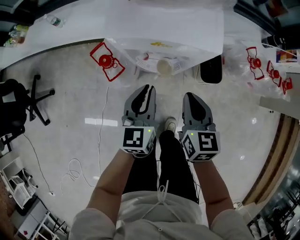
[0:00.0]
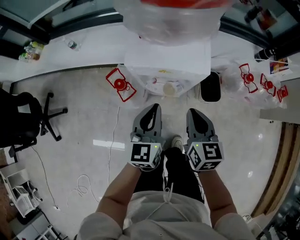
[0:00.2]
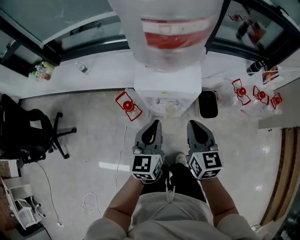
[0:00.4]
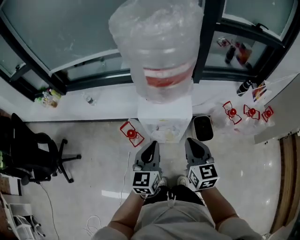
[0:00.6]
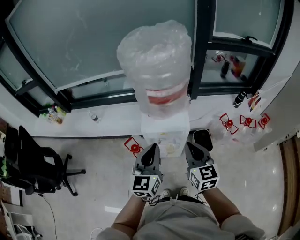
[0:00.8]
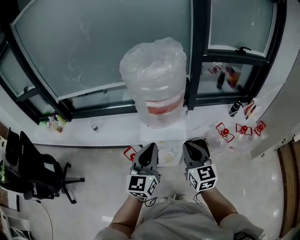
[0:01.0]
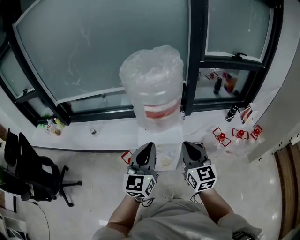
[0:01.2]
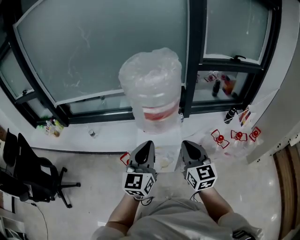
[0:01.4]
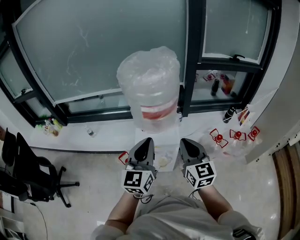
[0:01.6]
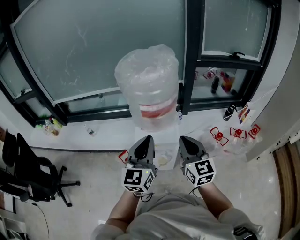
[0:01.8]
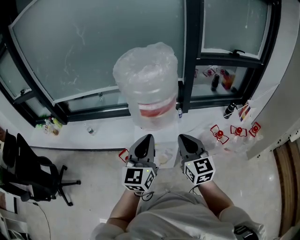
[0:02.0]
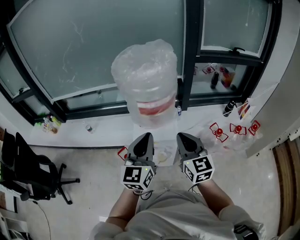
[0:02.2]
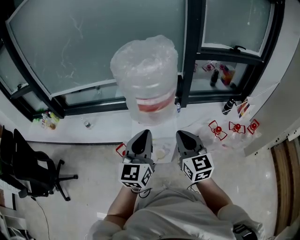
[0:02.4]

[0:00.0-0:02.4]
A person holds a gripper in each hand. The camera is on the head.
0:00.0 to 0:01.2: Both grippers travel together upward, some 40 cm. The right gripper changes its angle by approximately 30 degrees, while the left gripper changes its angle by roughly 30 degrees.
0:01.2 to 0:02.4: There are only small adjustments of the grippers.

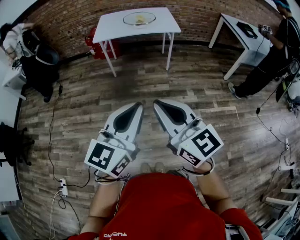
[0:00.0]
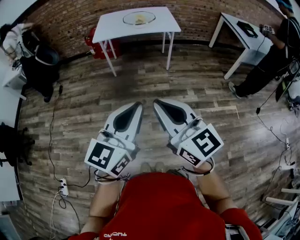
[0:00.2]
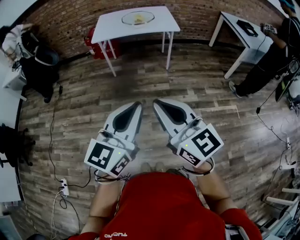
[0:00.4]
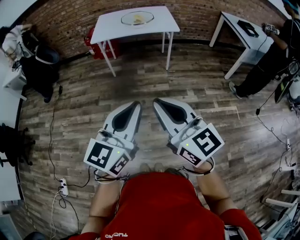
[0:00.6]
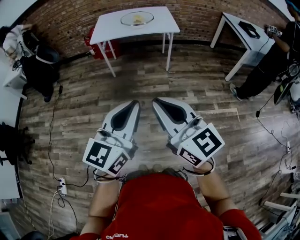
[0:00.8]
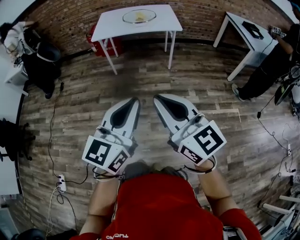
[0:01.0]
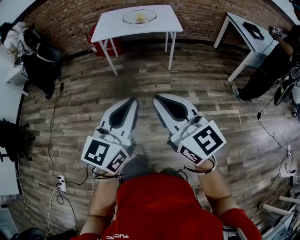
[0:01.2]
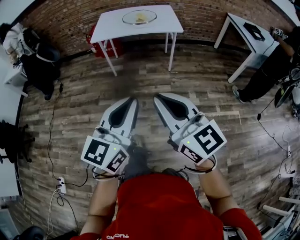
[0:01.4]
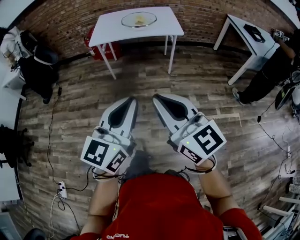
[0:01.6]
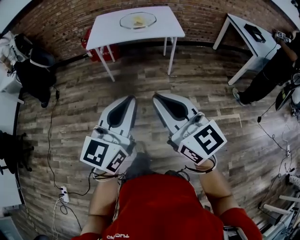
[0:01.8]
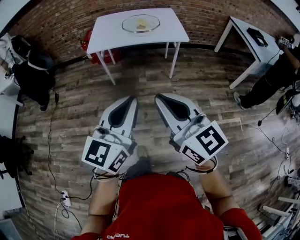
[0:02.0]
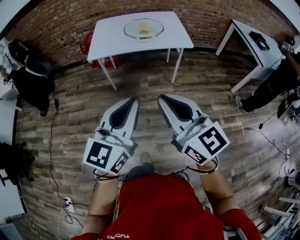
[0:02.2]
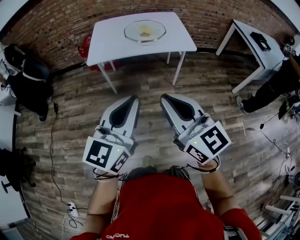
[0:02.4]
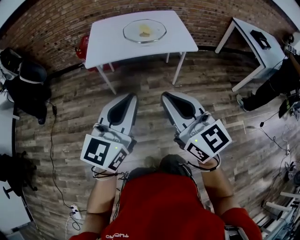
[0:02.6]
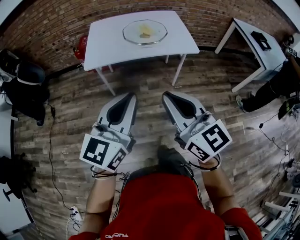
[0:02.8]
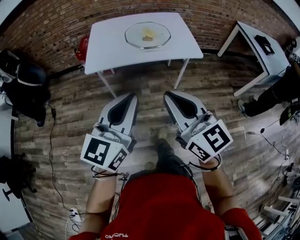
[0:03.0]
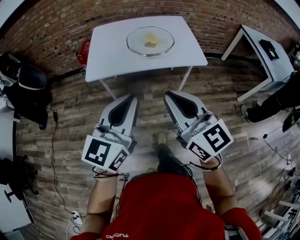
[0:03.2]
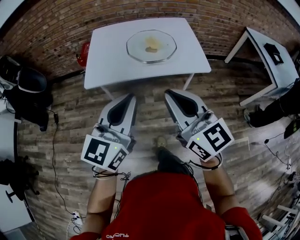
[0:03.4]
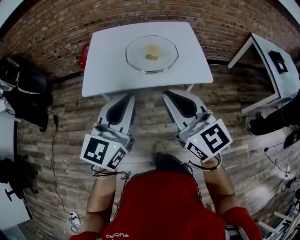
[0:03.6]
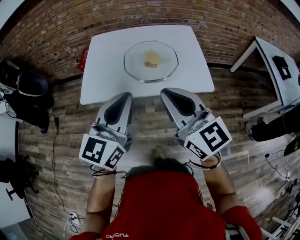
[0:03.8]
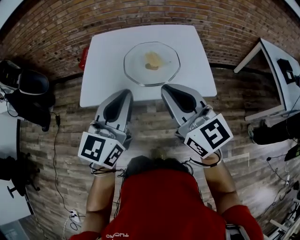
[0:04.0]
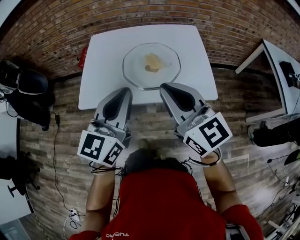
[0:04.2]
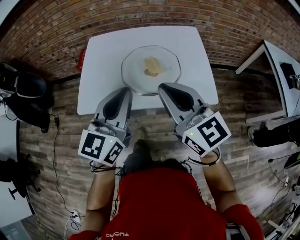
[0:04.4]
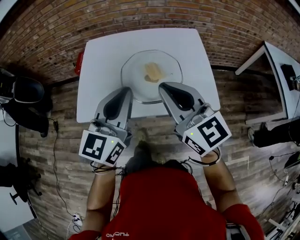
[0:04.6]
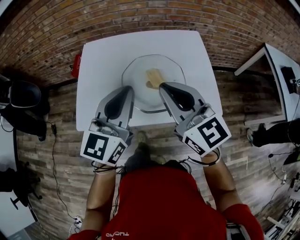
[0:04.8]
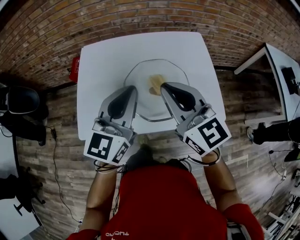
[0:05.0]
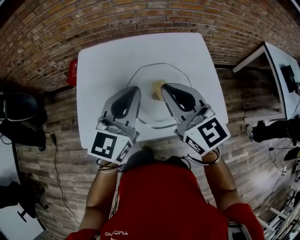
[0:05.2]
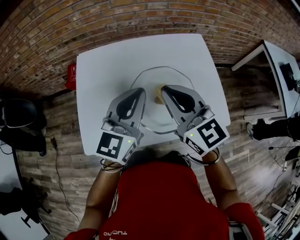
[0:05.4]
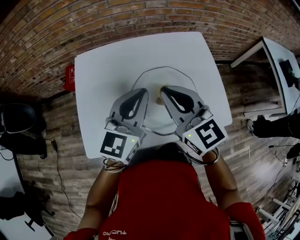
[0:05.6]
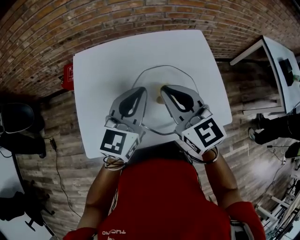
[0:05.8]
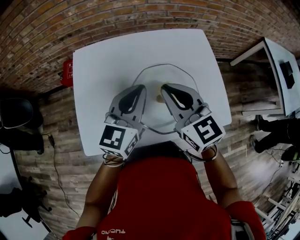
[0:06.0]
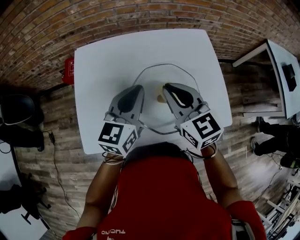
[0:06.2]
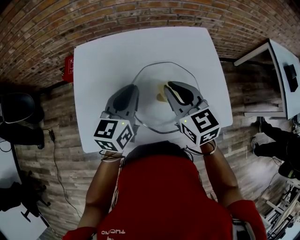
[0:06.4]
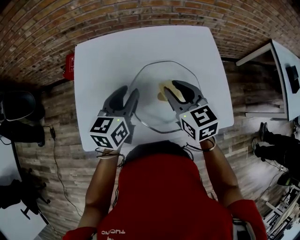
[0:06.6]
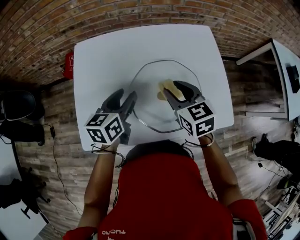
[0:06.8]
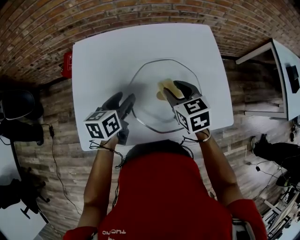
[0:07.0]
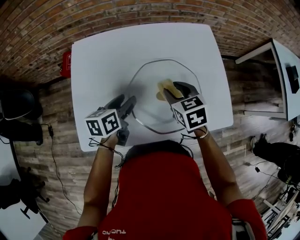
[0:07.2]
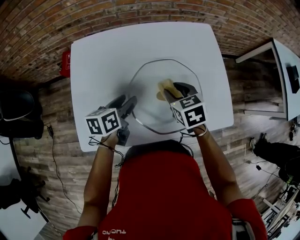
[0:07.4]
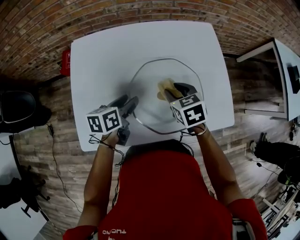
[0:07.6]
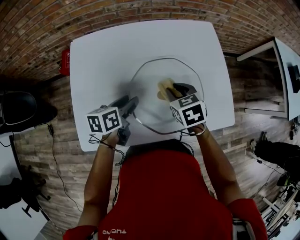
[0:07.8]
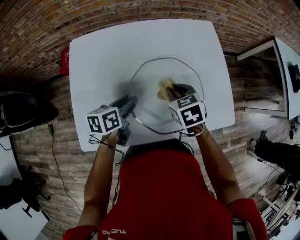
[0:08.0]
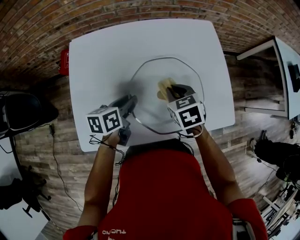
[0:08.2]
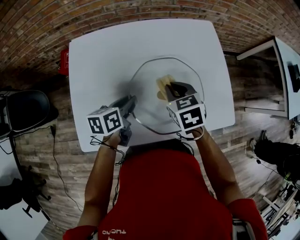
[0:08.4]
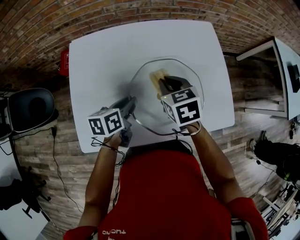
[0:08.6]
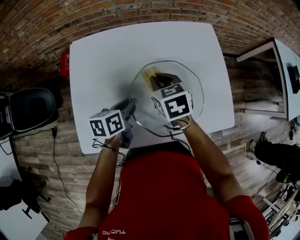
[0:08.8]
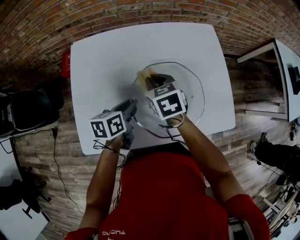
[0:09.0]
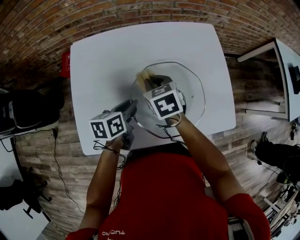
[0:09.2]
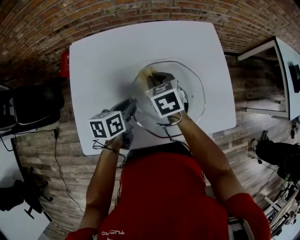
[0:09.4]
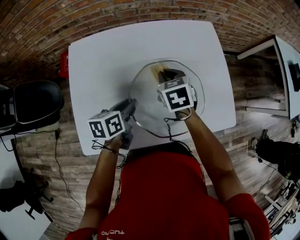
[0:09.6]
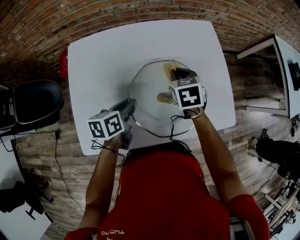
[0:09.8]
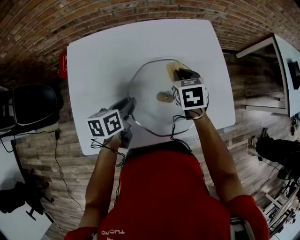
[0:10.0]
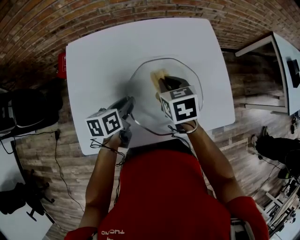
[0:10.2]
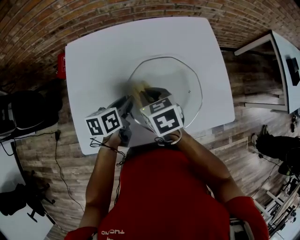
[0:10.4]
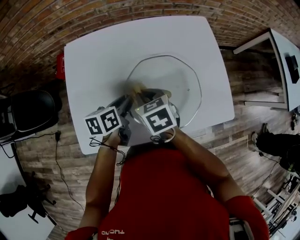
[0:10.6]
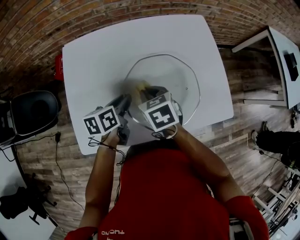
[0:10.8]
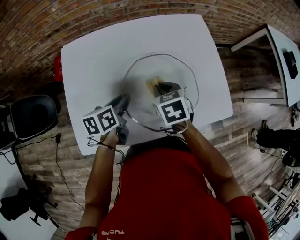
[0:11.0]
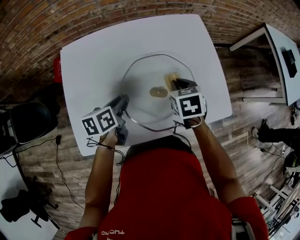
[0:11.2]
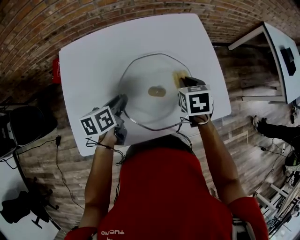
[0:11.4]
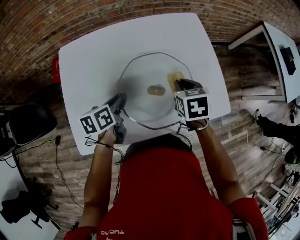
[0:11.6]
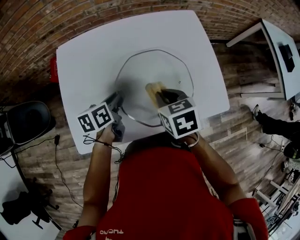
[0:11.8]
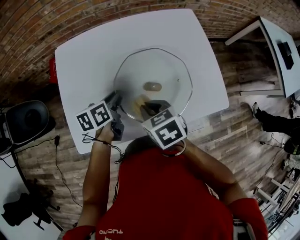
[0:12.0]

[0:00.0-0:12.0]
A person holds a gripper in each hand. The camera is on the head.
0:00.0 to 0:01.6: Both grippers move forward, about 10 cm.
0:01.6 to 0:03.0: The two grippers go some 35 cm forward.
0:03.0 to 0:04.4: The two grippers go some 35 cm forward.
0:04.4 to 0:06.0: The two grippers go roughly 25 cm forward.
0:06.0 to 0:07.6: Both grippers move downward, about 20 cm. The left gripper changes its angle by some 50 degrees, and opens its fingers. Meanwhile the right gripper tilts its fingers about 40 degrees downward, and opens its fingers.
0:07.6 to 0:09.0: The left gripper closes. Meanwhile the right gripper is displaced to the left by approximately 10 cm, and closes.
0:09.0 to 0:10.4: The right gripper goes about 5 cm backward, and moves roughly 10 cm to the right and comes back.
0:10.4 to 0:12.0: The right gripper heads backward, covering approximately 10 cm, and reaches approximately 20 cm to the right, then returns.

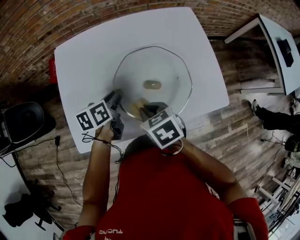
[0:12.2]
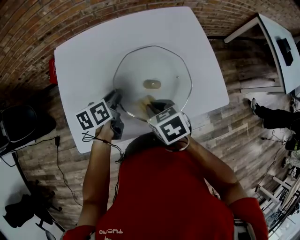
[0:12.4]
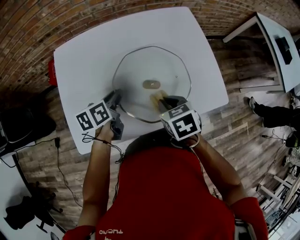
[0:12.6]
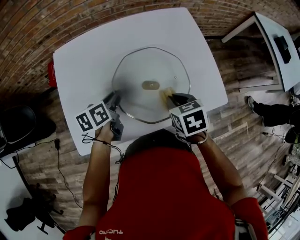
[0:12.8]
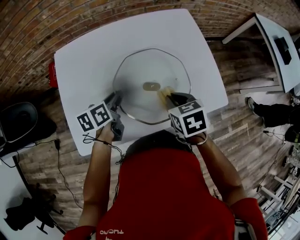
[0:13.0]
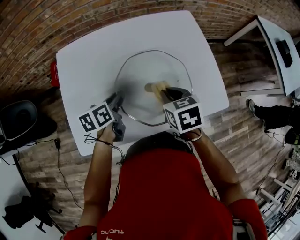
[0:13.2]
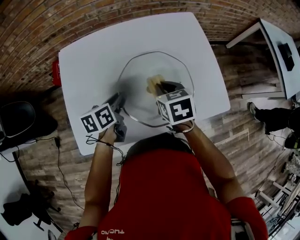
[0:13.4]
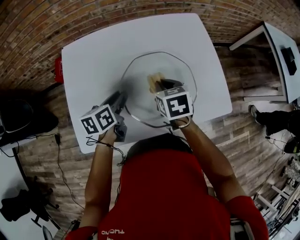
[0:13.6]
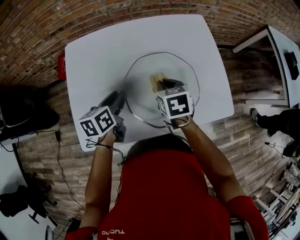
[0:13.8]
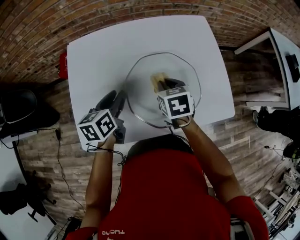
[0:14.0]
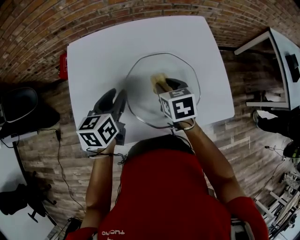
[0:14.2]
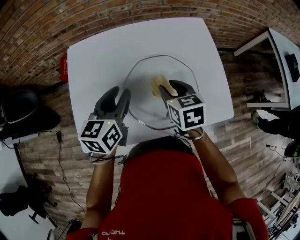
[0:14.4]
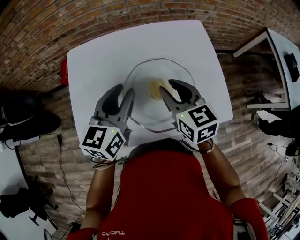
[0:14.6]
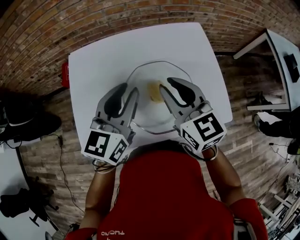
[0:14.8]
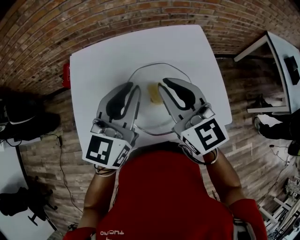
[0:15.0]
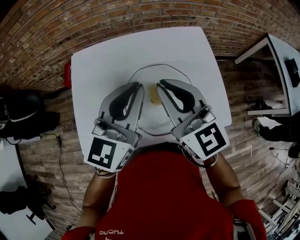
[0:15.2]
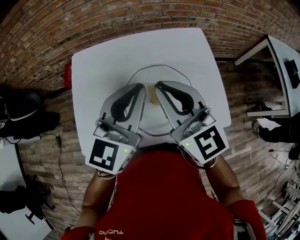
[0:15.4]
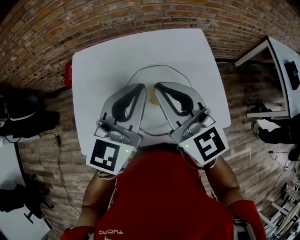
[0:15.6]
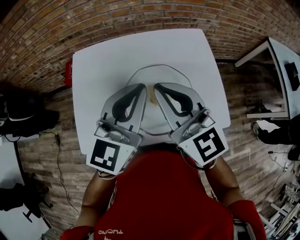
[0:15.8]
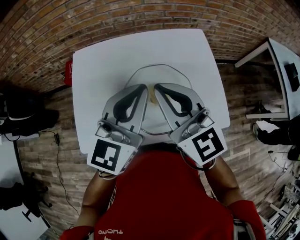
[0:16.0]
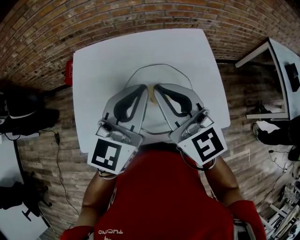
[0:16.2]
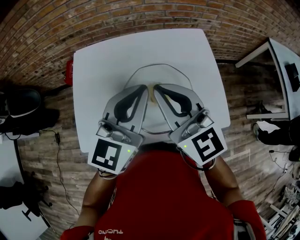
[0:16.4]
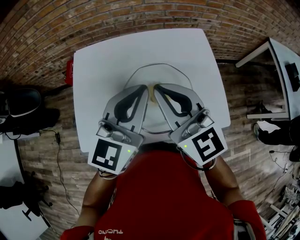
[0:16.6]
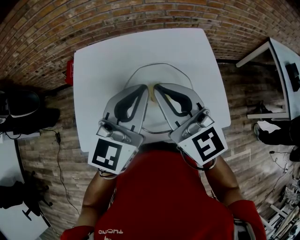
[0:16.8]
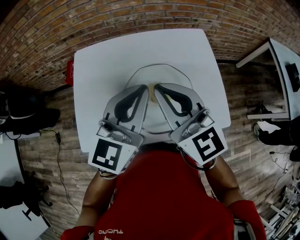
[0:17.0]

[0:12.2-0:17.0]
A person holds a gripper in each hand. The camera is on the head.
0:12.2 to 0:13.8: The right gripper moves forward and to the right, roughly 15 cm.
0:13.8 to 0:15.4: The left gripper moves upward and to the right, some 25 cm, angles its fingers upward, by about 30 degrees, and closes its fingers. The right gripper goes approximately 25 cm upward, angles its fingers upward, by approximately 50 degrees, and opens, then closes once more.
0:15.4 to 0:17.0: The grippers move only a little.

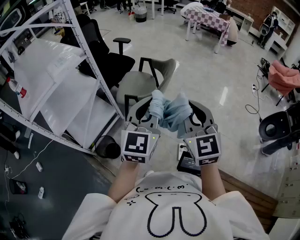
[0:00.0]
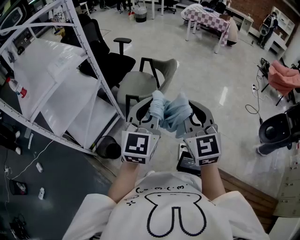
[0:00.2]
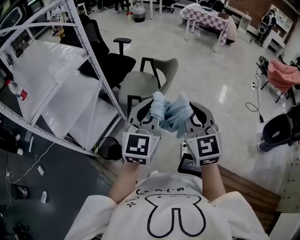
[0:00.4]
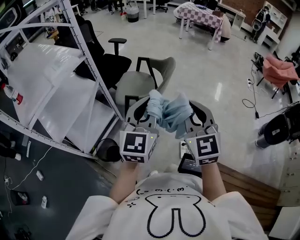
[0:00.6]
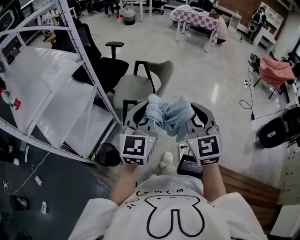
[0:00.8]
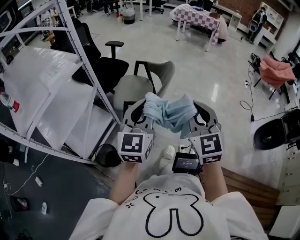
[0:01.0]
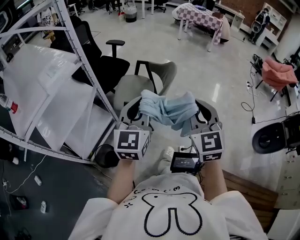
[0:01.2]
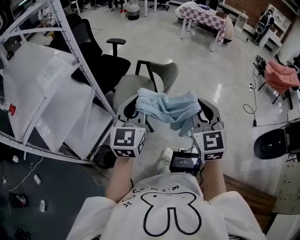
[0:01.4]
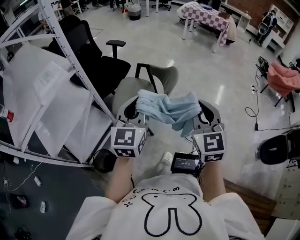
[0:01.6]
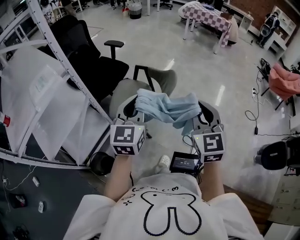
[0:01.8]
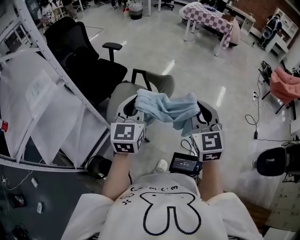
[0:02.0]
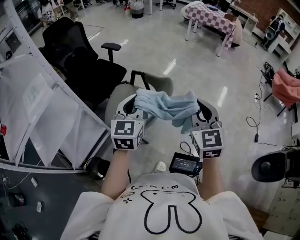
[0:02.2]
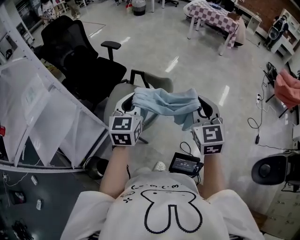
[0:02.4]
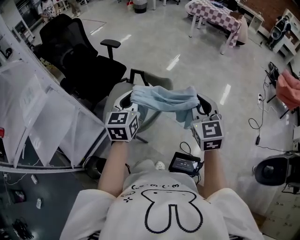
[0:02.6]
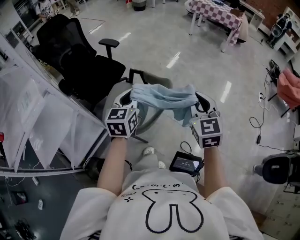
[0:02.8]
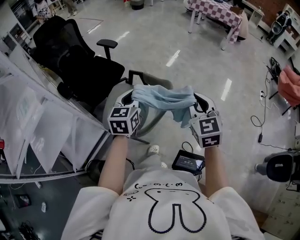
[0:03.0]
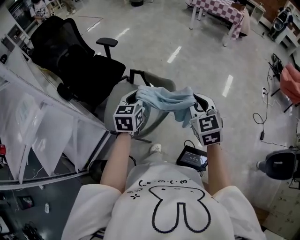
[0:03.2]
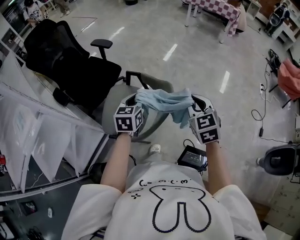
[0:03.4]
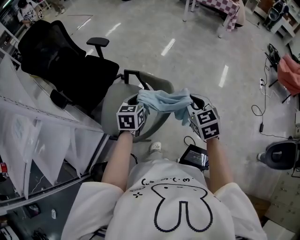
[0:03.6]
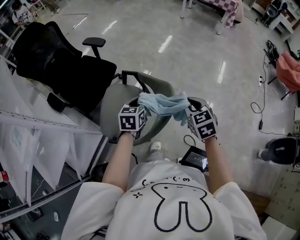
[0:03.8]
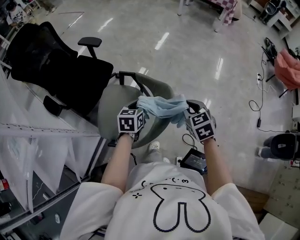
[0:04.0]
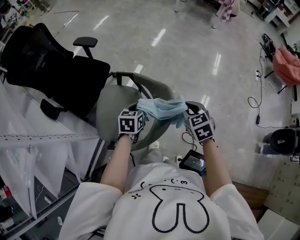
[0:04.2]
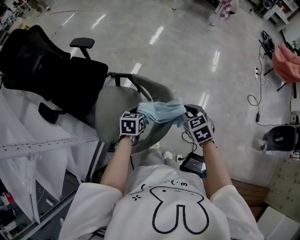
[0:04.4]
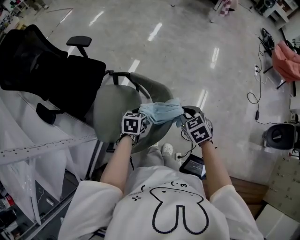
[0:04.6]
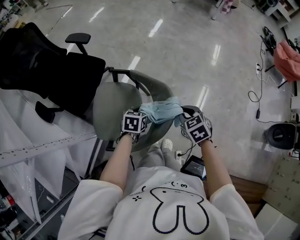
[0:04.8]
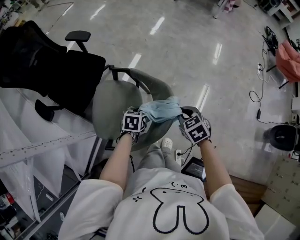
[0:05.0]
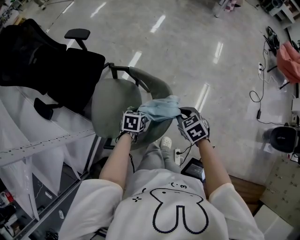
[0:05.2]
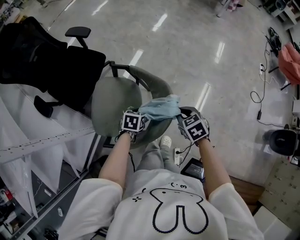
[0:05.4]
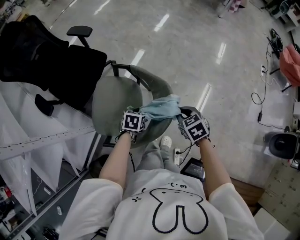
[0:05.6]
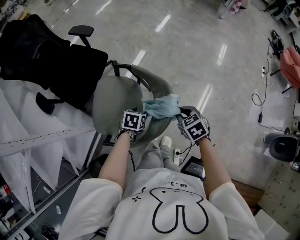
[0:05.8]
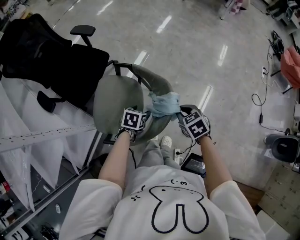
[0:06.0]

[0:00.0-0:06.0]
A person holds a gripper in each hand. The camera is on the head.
0:00.0 to 0:01.6: The right gripper is displaced forward by about 15 cm. The left gripper travels forward and to the left by some 20 cm.
0:01.6 to 0:03.0: The grippers both shift forward by roughly 30 cm.
0:03.0 to 0:04.4: The grippers both shift downward and forward by roughly 25 cm. The right gripper angles its fingers downward, by approximately 30 degrees. The left gripper swivels approximately 30 degrees.
0:04.4 to 0:06.0: Both grippers travel together downward, approximately 5 cm. The left gripper opens up.
